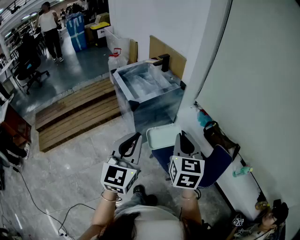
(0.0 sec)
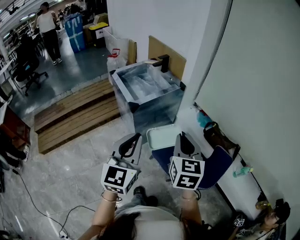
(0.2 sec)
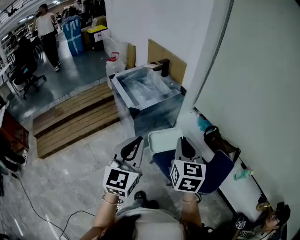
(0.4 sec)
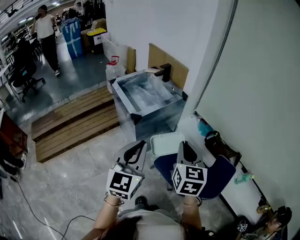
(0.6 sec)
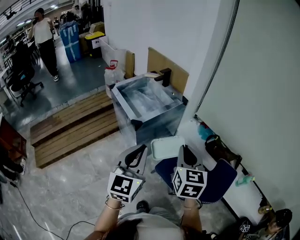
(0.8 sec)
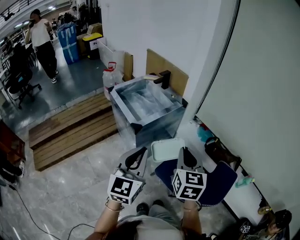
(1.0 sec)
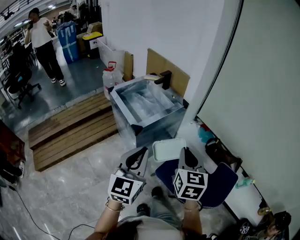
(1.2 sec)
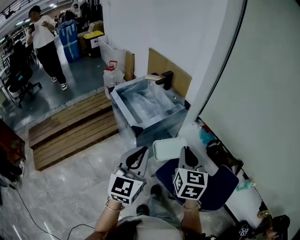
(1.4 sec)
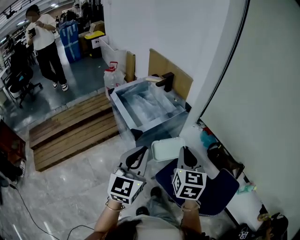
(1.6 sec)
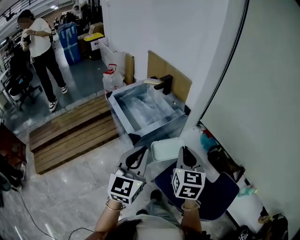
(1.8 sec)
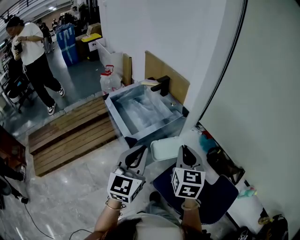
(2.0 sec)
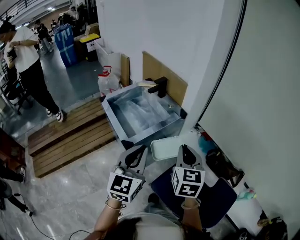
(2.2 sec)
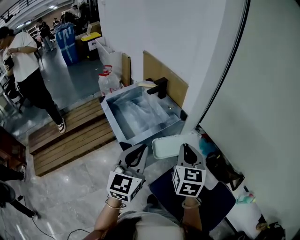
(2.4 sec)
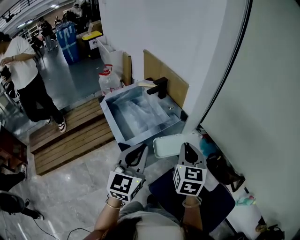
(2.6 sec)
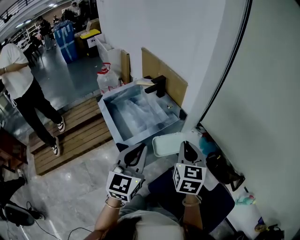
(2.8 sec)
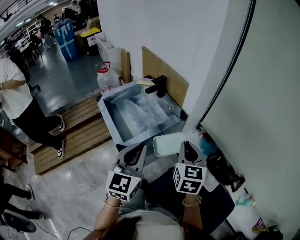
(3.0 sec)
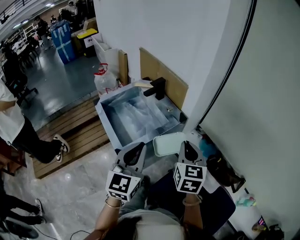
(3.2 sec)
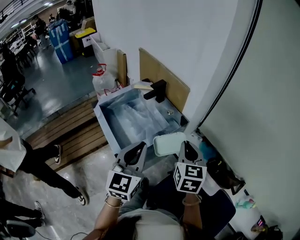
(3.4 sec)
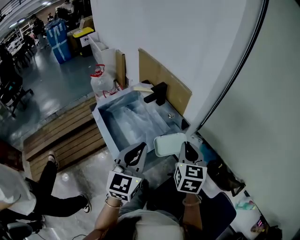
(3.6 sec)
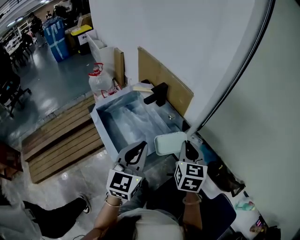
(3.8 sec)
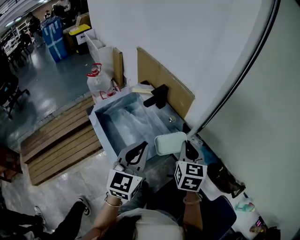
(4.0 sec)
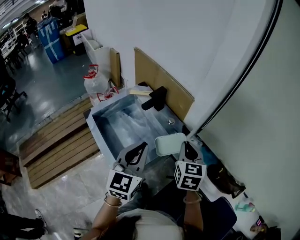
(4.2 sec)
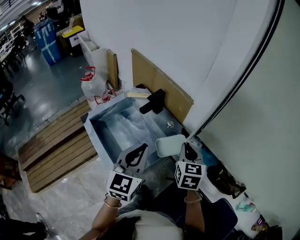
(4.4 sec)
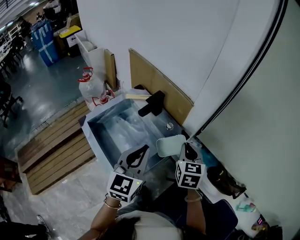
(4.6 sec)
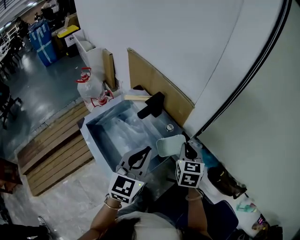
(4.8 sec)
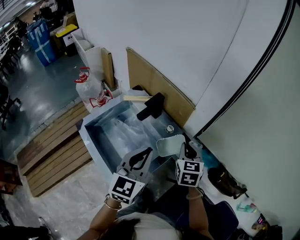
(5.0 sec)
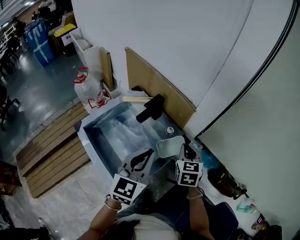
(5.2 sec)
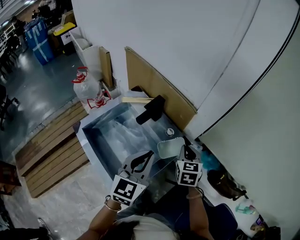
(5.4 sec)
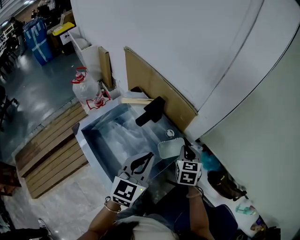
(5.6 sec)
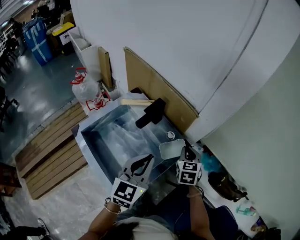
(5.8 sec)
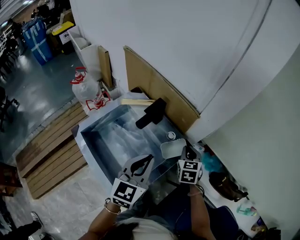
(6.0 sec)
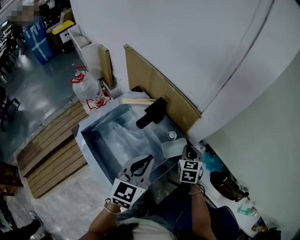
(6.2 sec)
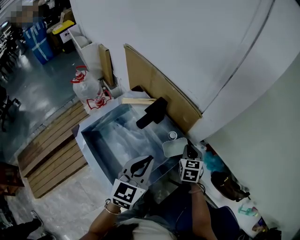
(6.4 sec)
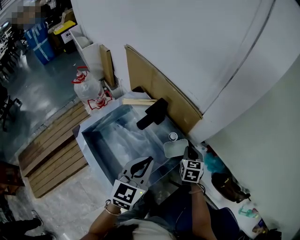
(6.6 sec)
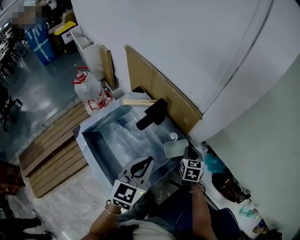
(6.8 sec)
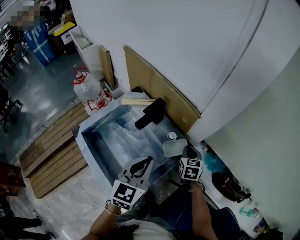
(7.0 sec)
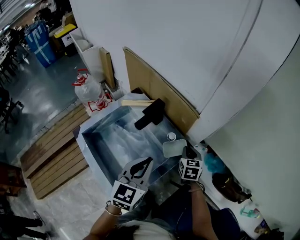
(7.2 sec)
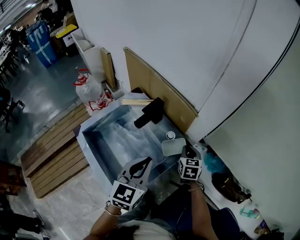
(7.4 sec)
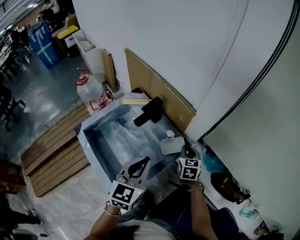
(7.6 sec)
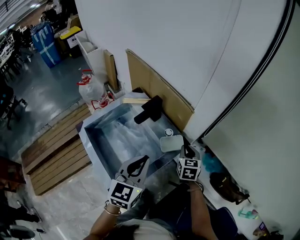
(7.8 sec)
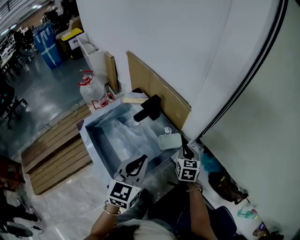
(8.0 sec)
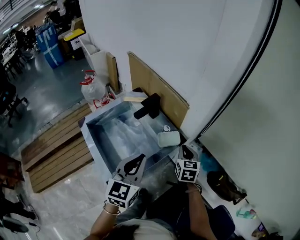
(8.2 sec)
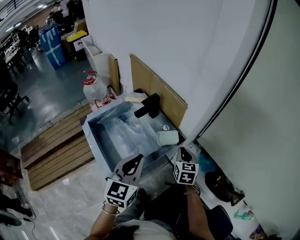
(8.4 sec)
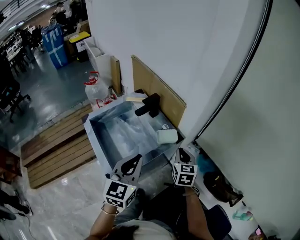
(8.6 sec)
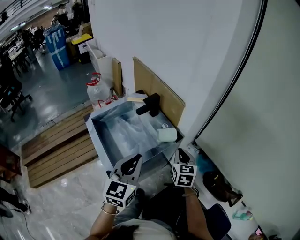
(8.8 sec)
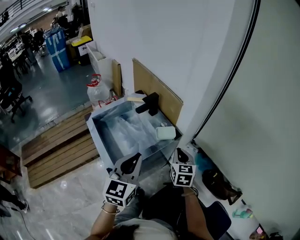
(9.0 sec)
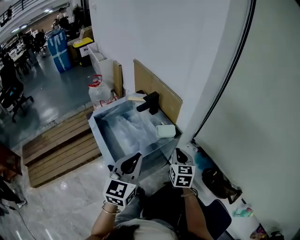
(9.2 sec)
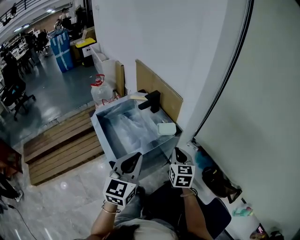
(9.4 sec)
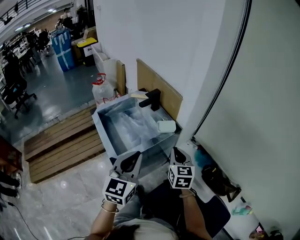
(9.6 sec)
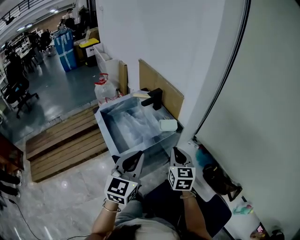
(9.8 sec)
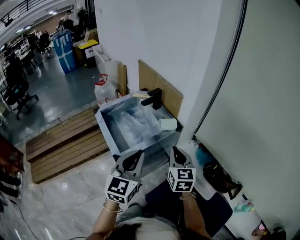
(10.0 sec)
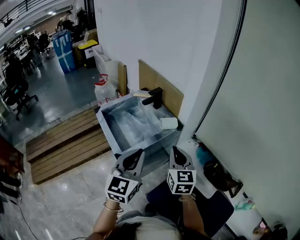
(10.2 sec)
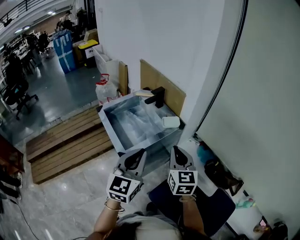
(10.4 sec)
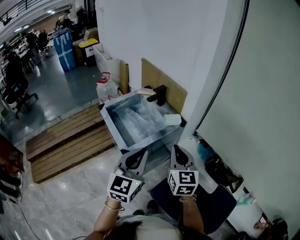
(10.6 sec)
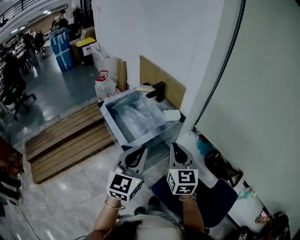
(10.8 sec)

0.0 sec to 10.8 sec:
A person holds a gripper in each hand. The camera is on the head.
0.0 sec to 1.6 sec: The two grippers go approximately 15 cm forward and to the left.
1.6 sec to 3.0 sec: Both grippers move forward, approximately 20 cm.
3.0 sec to 4.6 sec: Both grippers travel together forward, roughly 20 cm.
4.6 sec to 6.2 sec: The right gripper heads downward and forward, covering roughly 15 cm, while the left gripper shifts some 10 cm forward and downward.
6.2 sec to 7.8 sec: The grippers make only small movements.
7.8 sec to 9.2 sec: The two grippers go approximately 20 cm backward and upward.
9.2 sec to 10.8 sec: The right gripper heads backward, upward and to the left, covering about 25 cm. The left gripper is displaced backward by some 15 cm.

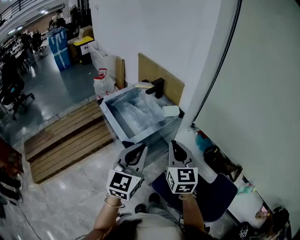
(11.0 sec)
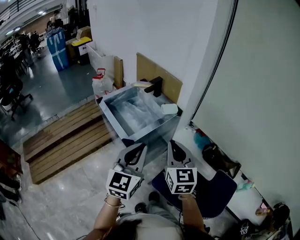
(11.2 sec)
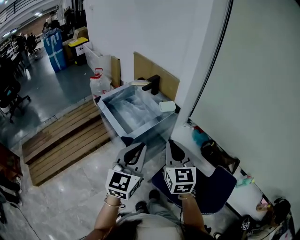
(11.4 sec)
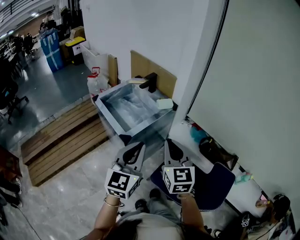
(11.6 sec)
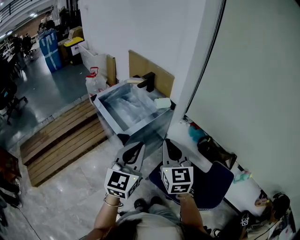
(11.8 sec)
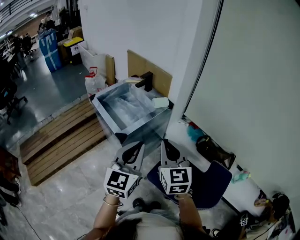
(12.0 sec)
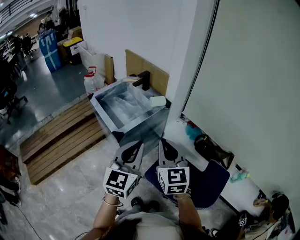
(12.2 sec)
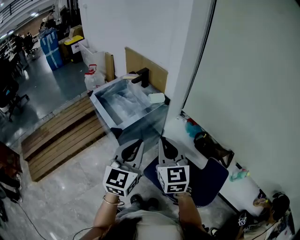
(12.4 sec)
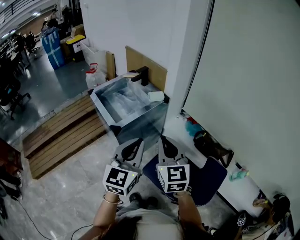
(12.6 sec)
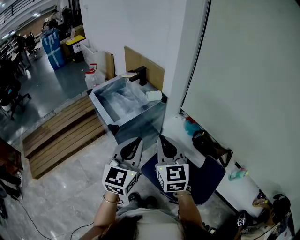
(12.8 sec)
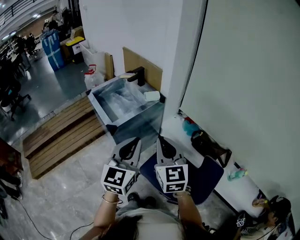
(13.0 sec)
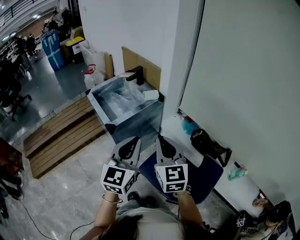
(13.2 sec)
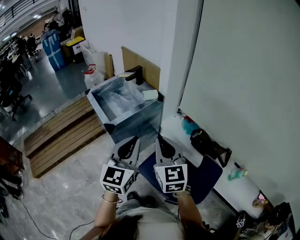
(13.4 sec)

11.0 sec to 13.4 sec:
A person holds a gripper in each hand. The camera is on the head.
11.0 sec to 12.2 sec: The left gripper shifts approximately 10 cm backward and to the right, while the right gripper moves backward, about 10 cm.
12.2 sec to 13.4 sec: The two grippers go some 10 cm to the right.

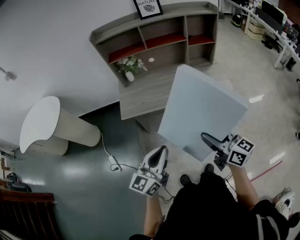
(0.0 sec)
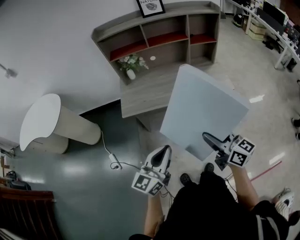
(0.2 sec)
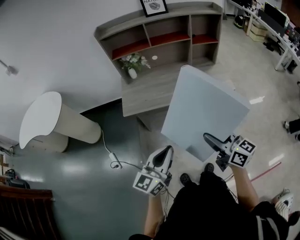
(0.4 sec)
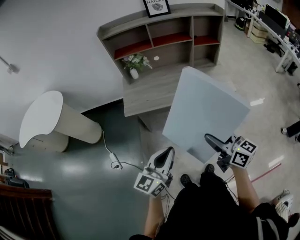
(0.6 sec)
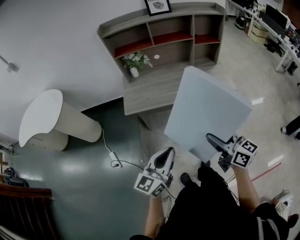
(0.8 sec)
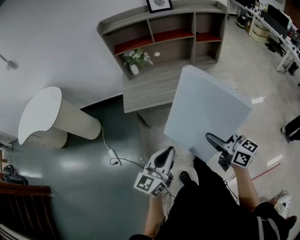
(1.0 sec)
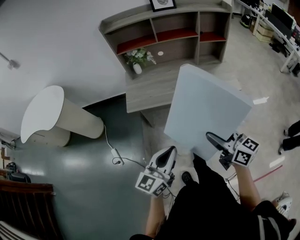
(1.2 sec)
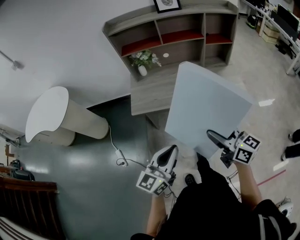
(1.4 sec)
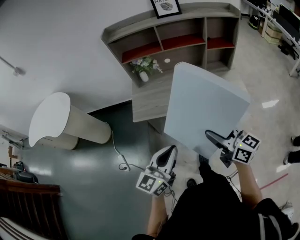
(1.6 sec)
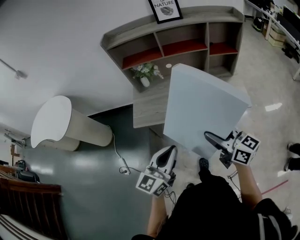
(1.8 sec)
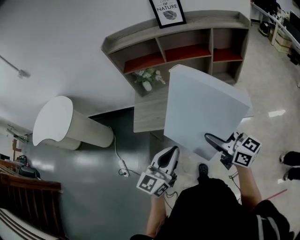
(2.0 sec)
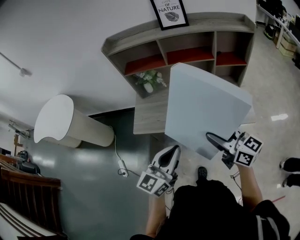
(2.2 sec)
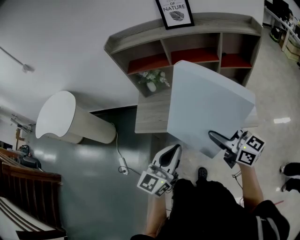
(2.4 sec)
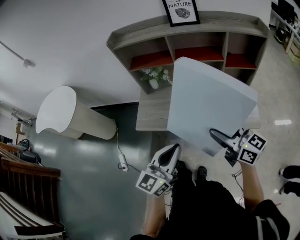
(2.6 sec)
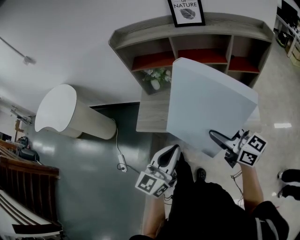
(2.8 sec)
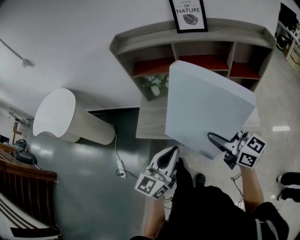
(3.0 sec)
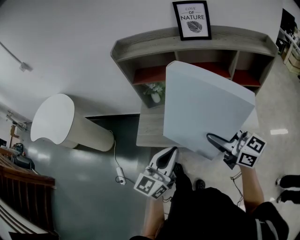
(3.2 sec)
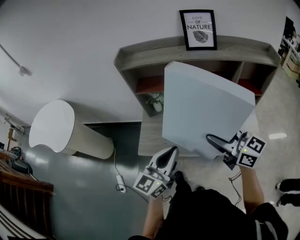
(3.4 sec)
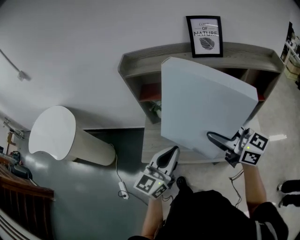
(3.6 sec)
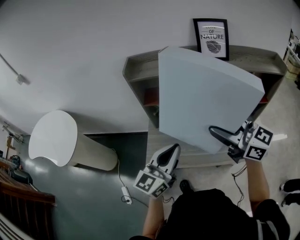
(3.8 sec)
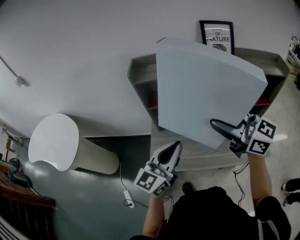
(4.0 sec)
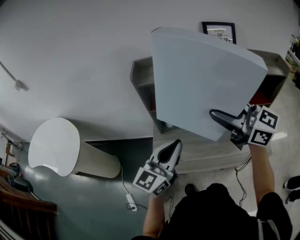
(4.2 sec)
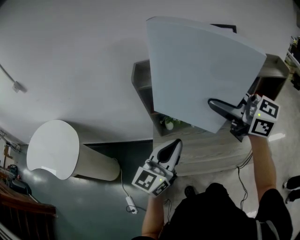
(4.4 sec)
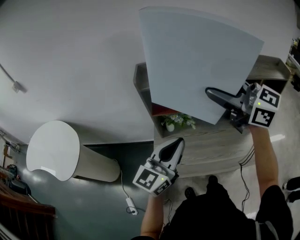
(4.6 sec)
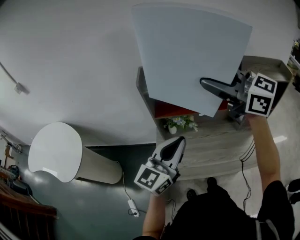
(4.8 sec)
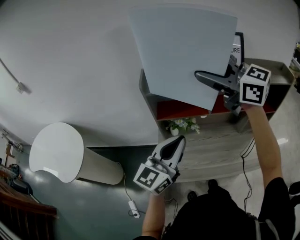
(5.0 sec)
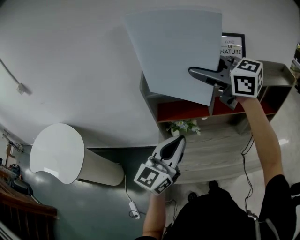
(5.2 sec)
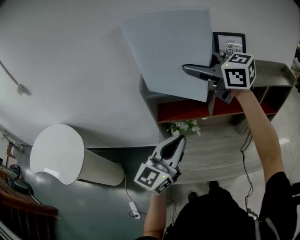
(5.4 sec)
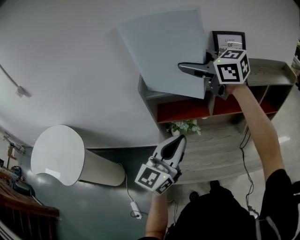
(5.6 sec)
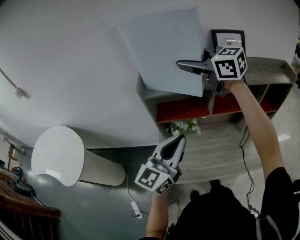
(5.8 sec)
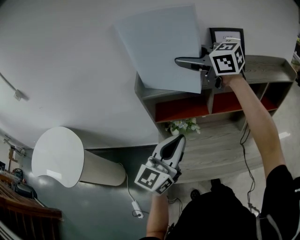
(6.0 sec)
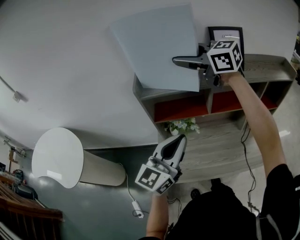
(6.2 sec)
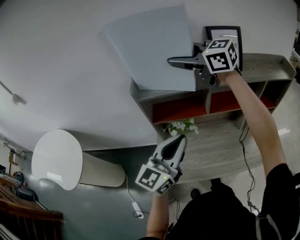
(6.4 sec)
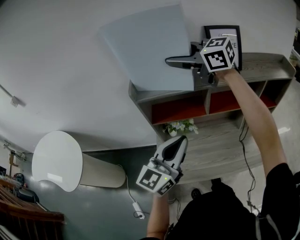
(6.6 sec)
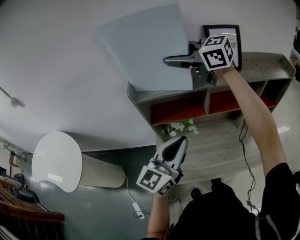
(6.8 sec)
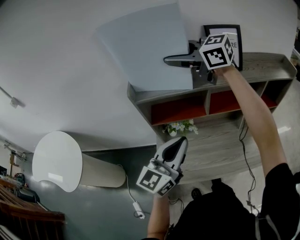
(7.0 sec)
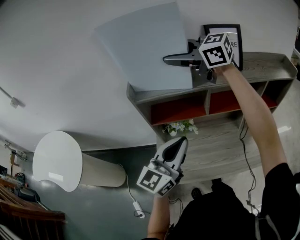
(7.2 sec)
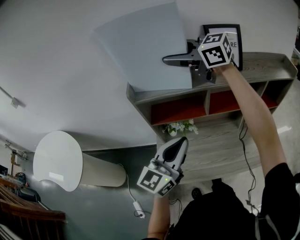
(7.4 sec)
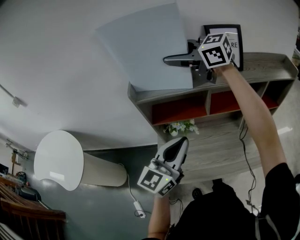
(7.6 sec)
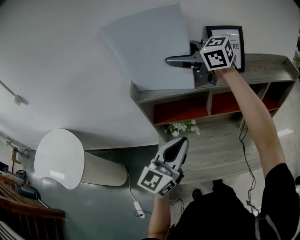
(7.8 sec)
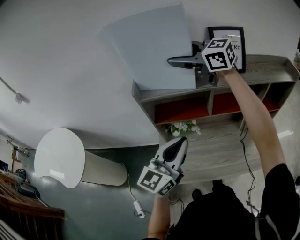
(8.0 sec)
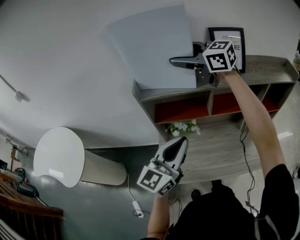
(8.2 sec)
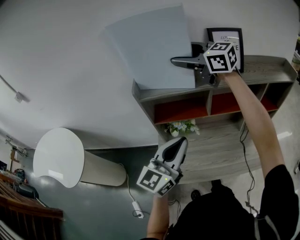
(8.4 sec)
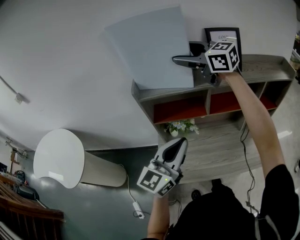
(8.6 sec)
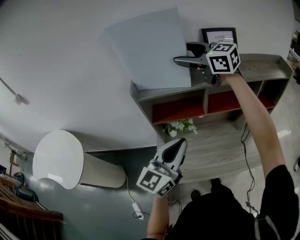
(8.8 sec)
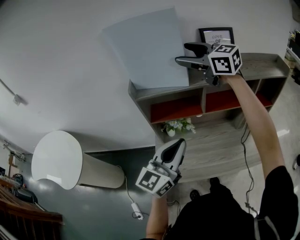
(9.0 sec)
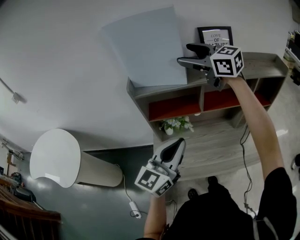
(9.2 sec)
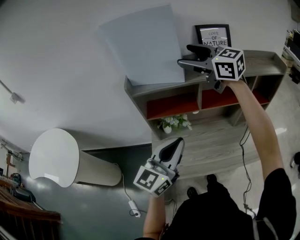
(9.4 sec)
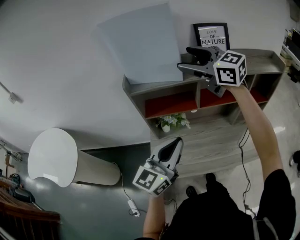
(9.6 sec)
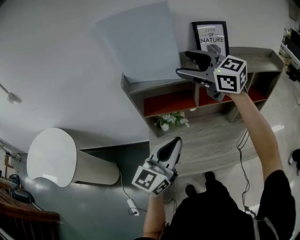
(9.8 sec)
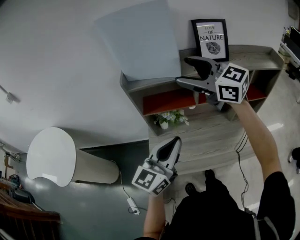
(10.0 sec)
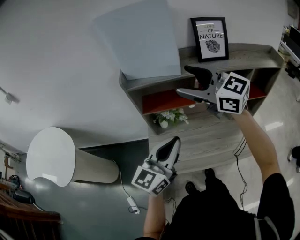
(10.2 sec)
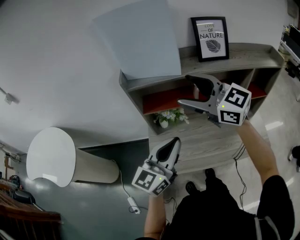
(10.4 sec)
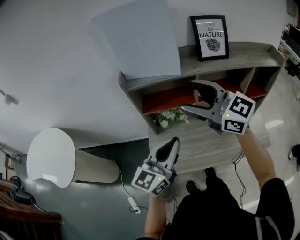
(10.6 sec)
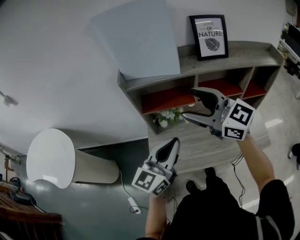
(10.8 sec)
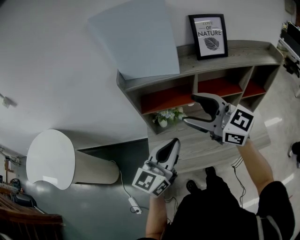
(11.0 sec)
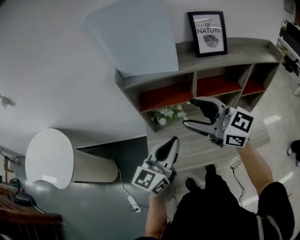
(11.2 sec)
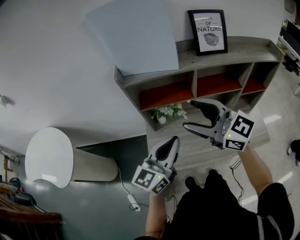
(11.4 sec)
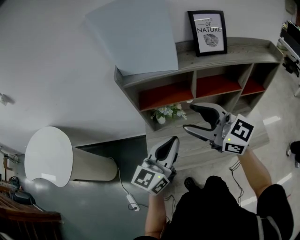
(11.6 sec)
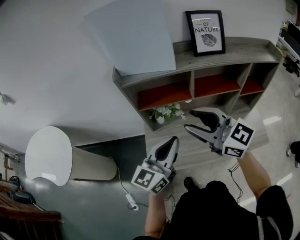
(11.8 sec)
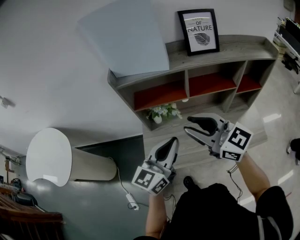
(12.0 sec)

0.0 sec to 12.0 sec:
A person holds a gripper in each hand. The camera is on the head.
0.0 sec to 1.6 sec: Both grippers move forward, about 10 cm.
1.6 sec to 3.0 sec: Both grippers move forward, about 20 cm.
3.0 sec to 4.4 sec: The left gripper moves forward and to the left, about 25 cm, while the right gripper travels forward, upward and to the left by about 35 cm.
4.4 sec to 6.0 sec: The right gripper heads forward, covering roughly 20 cm. Meanwhile the left gripper shifts some 5 cm forward.
6.0 sec to 7.6 sec: The grippers stay close to where they were, moving slightly.
7.6 sec to 9.0 sec: The right gripper changes place by about 5 cm.
9.0 sec to 10.4 sec: The right gripper moves backward and downward, roughly 15 cm.
10.4 sec to 12.0 sec: The right gripper shifts approximately 15 cm backward and downward, and closes.
